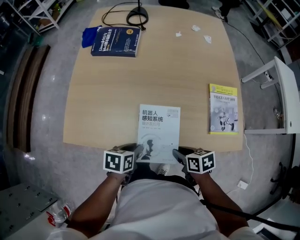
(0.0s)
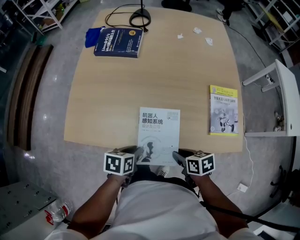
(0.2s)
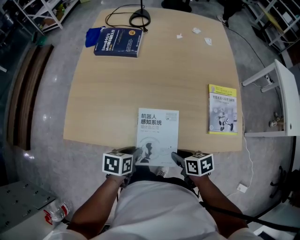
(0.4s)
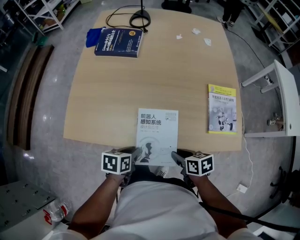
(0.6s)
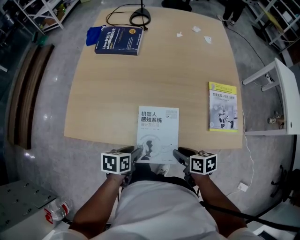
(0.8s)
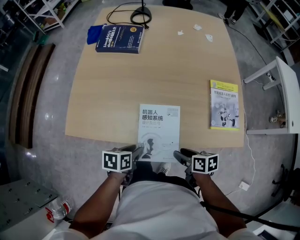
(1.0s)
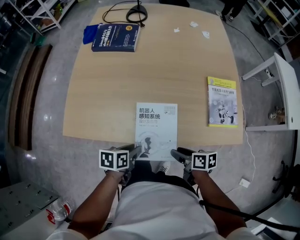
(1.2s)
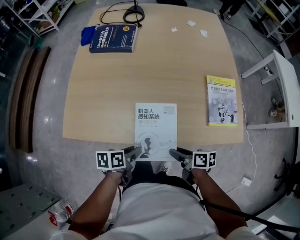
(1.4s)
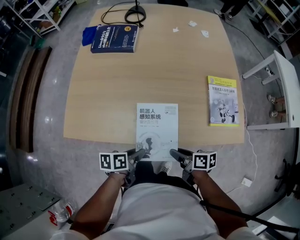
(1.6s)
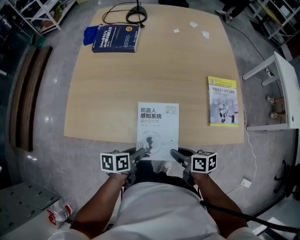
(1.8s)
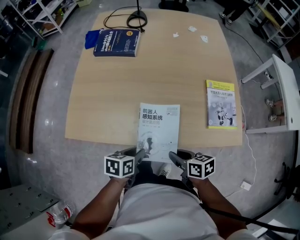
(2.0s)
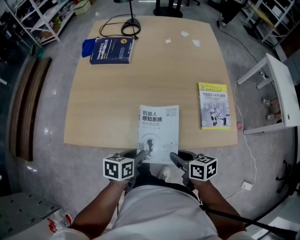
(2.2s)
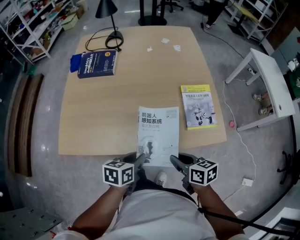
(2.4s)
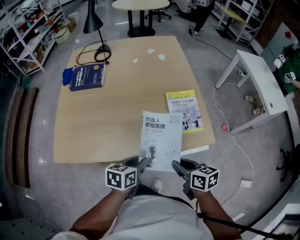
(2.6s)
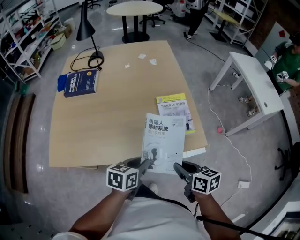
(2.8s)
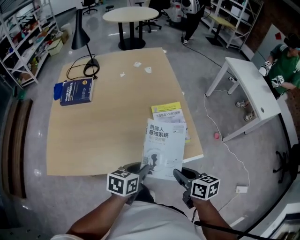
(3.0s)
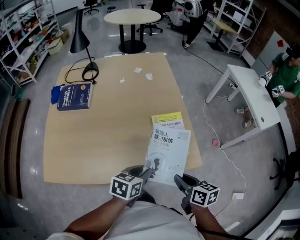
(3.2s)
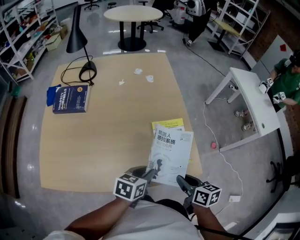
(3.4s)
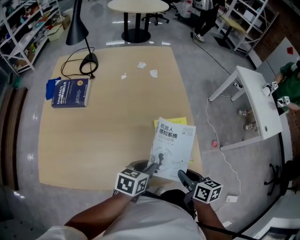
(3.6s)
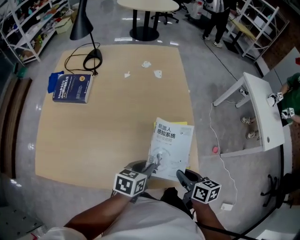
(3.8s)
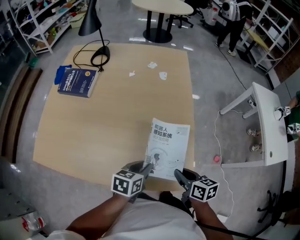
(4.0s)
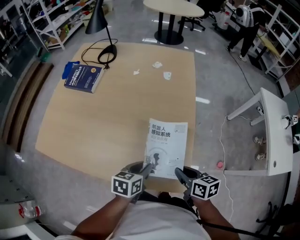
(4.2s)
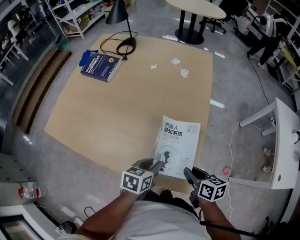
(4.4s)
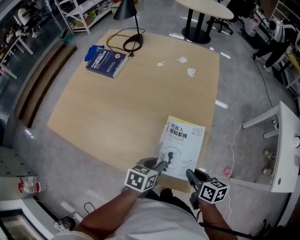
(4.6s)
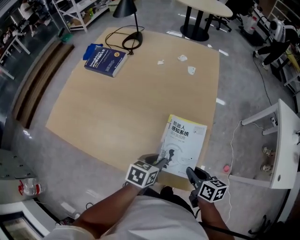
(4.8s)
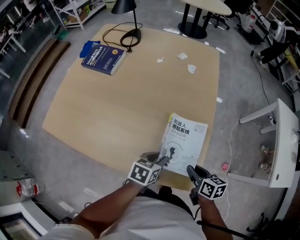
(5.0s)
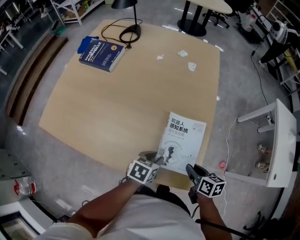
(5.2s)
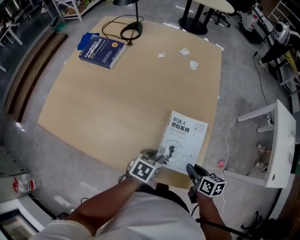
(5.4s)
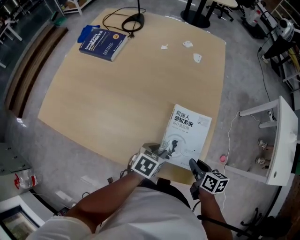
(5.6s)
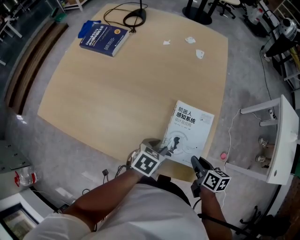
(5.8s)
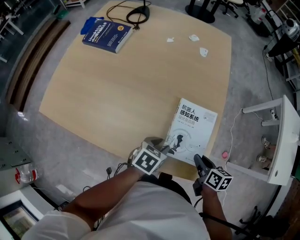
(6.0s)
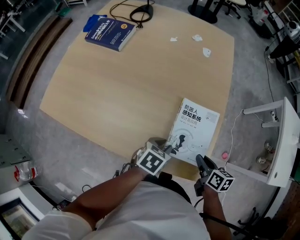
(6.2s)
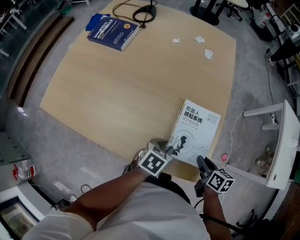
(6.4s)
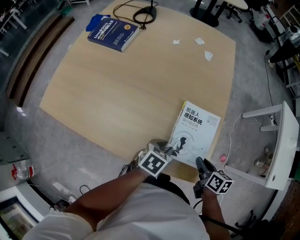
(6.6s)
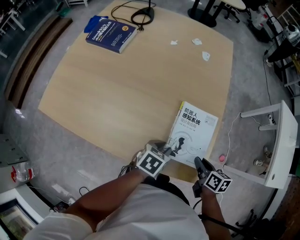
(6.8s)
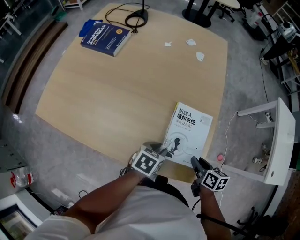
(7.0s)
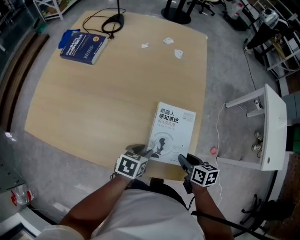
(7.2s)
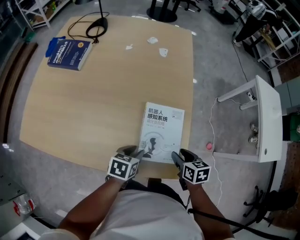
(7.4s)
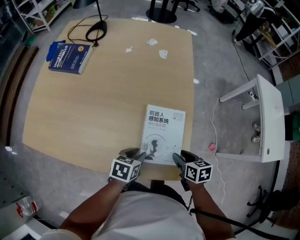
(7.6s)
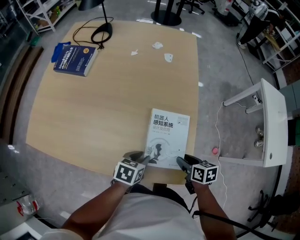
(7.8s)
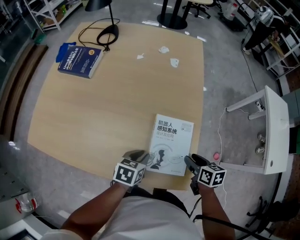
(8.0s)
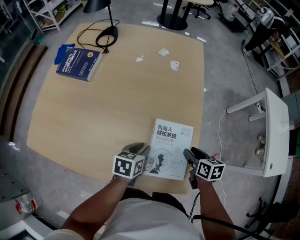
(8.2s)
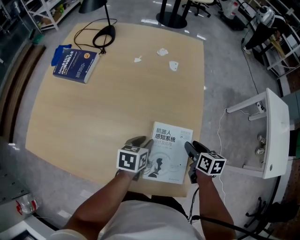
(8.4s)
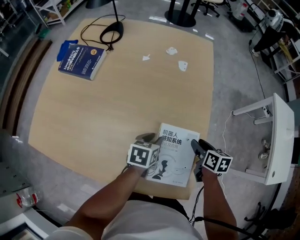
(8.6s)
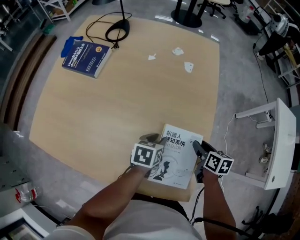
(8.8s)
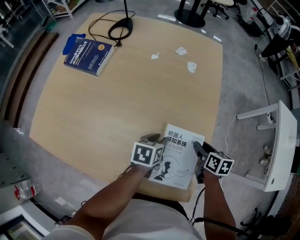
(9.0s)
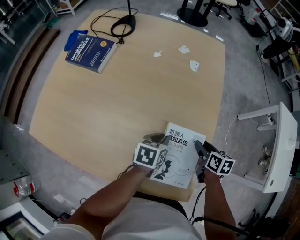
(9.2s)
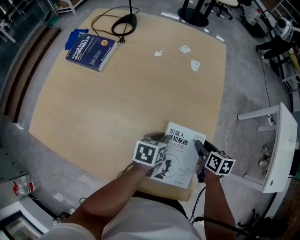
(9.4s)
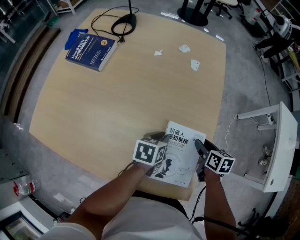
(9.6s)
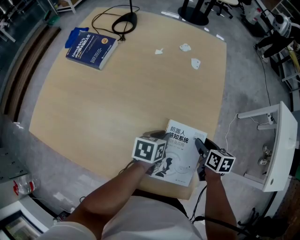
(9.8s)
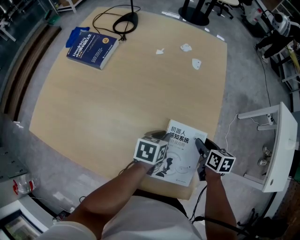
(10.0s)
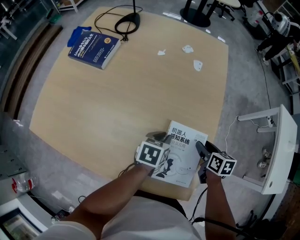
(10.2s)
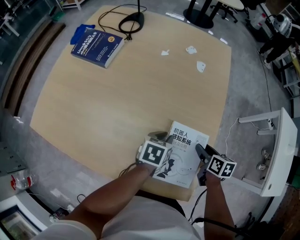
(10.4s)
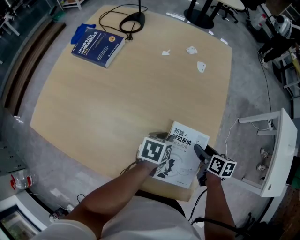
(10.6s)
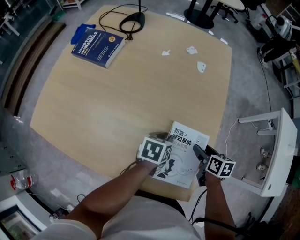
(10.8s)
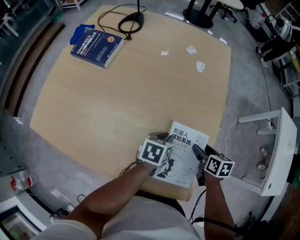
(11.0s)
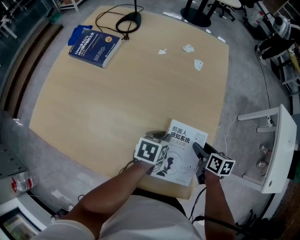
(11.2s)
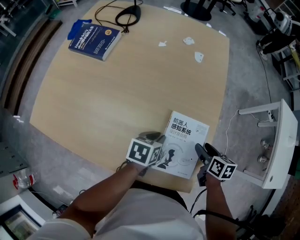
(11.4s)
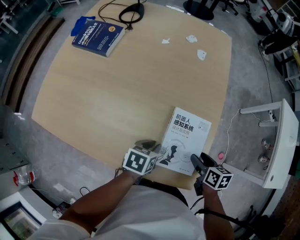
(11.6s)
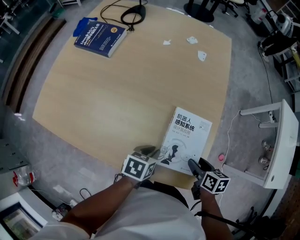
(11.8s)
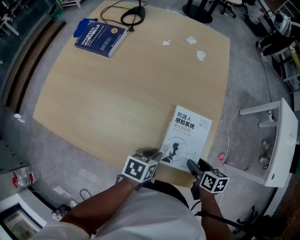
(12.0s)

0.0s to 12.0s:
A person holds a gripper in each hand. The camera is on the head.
0.0s to 1.6s: The left gripper heads backward, covering some 5 cm, and turns by roughly 20 degrees. Meanwhile the right gripper changes its angle by approximately 30 degrees.
1.6s to 3.0s: The grippers both shift to the right and upward by about 25 cm. The left gripper changes its angle by approximately 40 degrees. Meanwhile the right gripper swivels approximately 30 degrees.
3.0s to 4.4s: The right gripper shifts by some 20 cm, and changes its angle by approximately 20 degrees. Meanwhile the left gripper changes place by roughly 15 cm, and rotates about 30 degrees.
4.4s to 6.0s: The grippers make only small movements.
6.0s to 7.6s: The right gripper opens its fingers.
7.6s to 9.0s: The grippers both shift forward by some 15 cm.
9.0s to 10.4s: The grippers move only a little.
10.4s to 12.0s: Both grippers move backward, some 15 cm.

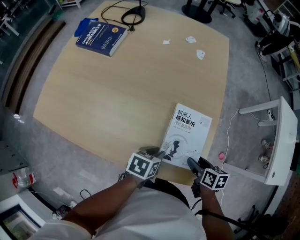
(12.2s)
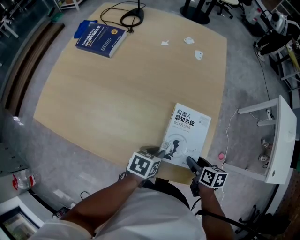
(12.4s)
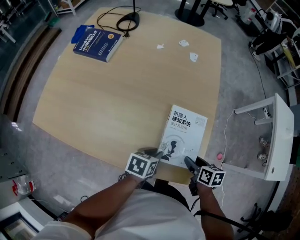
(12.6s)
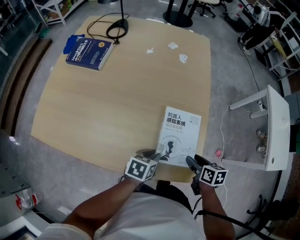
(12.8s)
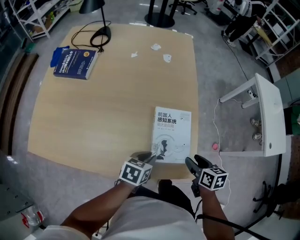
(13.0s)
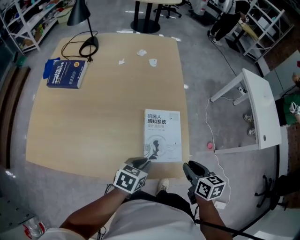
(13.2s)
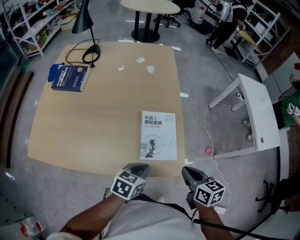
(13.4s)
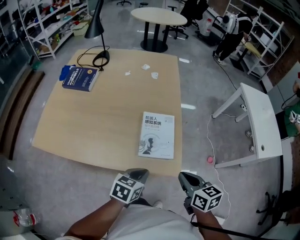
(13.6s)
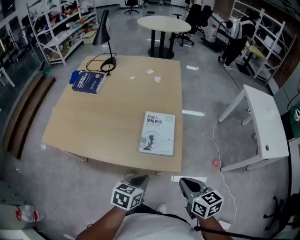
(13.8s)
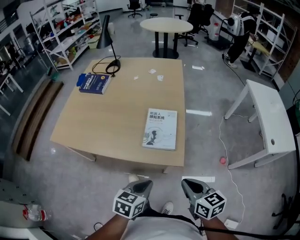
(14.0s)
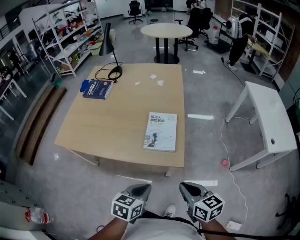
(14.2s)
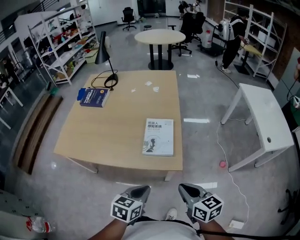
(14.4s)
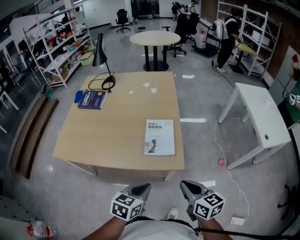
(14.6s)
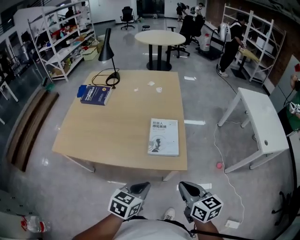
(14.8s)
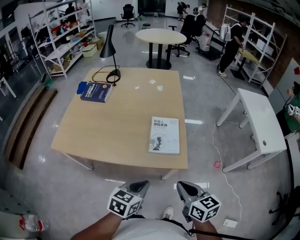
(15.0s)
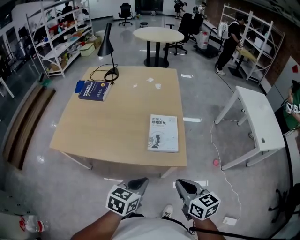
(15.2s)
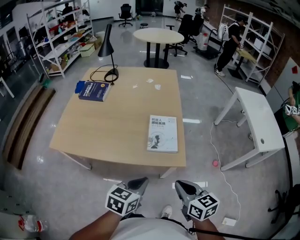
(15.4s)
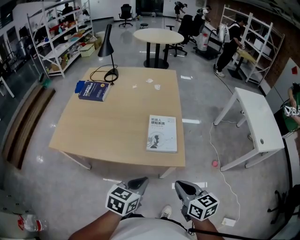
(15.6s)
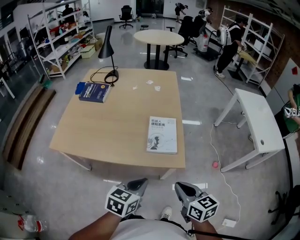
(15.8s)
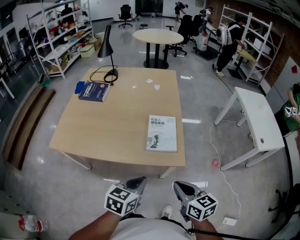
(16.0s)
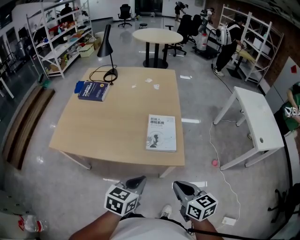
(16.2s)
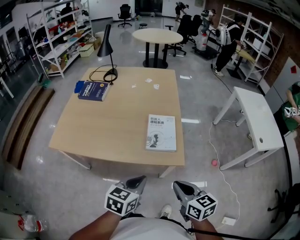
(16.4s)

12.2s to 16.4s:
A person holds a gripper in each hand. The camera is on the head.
12.2s to 13.6s: The right gripper goes about 20 cm upward and backward, swivels approximately 20 degrees, and closes; the left gripper goes about 15 cm backward and upward, turns by some 20 degrees, and closes.
13.6s to 15.0s: The left gripper travels backward and upward by approximately 15 cm. The right gripper heads backward, covering about 10 cm.
15.0s to 16.4s: The grippers move only a little.

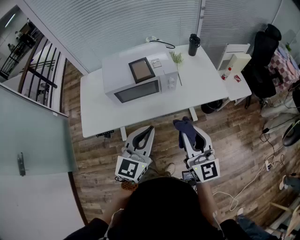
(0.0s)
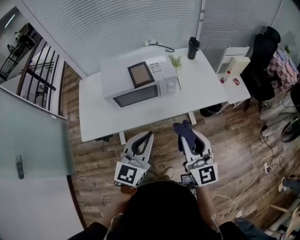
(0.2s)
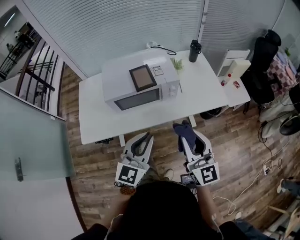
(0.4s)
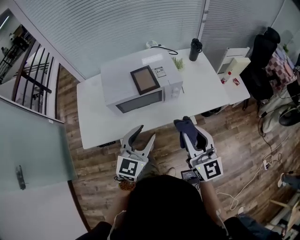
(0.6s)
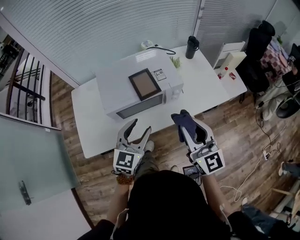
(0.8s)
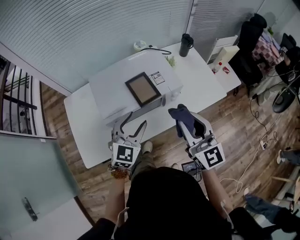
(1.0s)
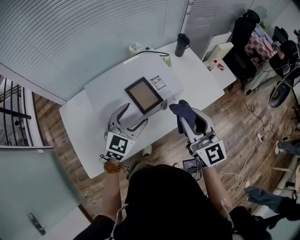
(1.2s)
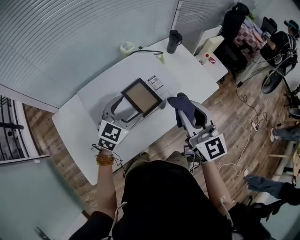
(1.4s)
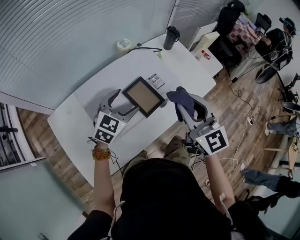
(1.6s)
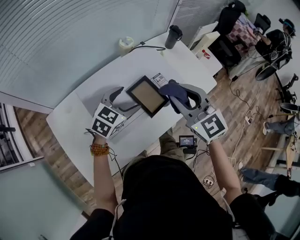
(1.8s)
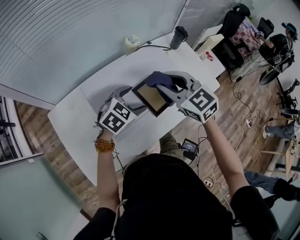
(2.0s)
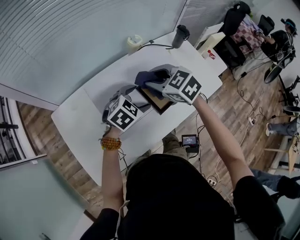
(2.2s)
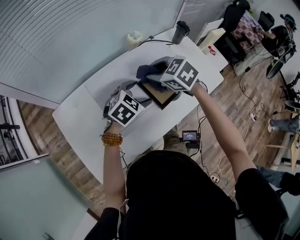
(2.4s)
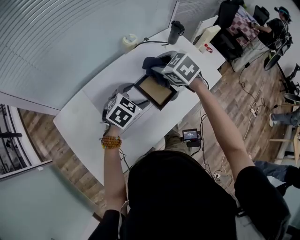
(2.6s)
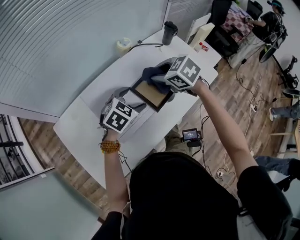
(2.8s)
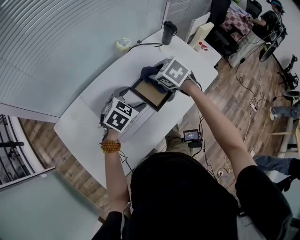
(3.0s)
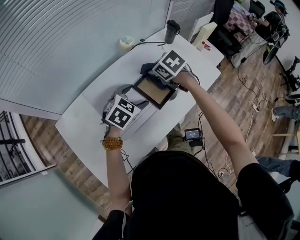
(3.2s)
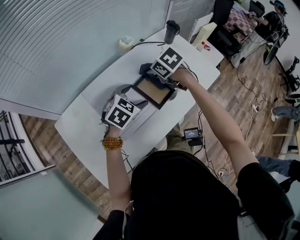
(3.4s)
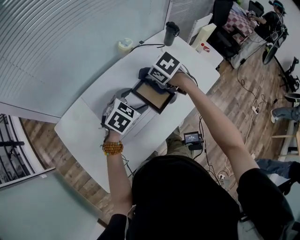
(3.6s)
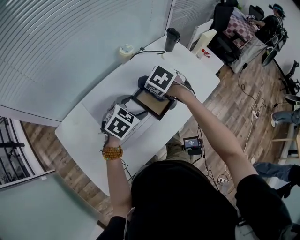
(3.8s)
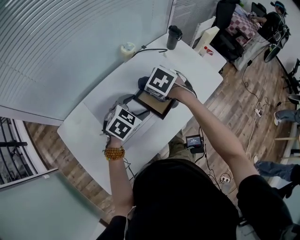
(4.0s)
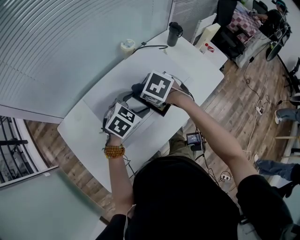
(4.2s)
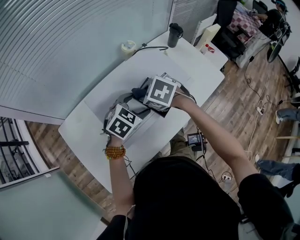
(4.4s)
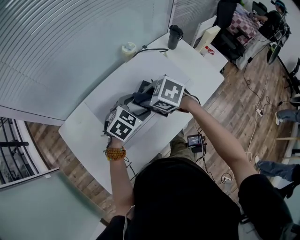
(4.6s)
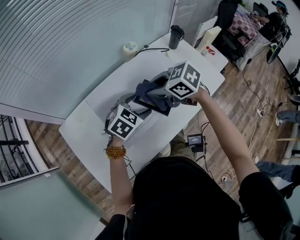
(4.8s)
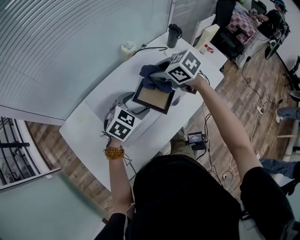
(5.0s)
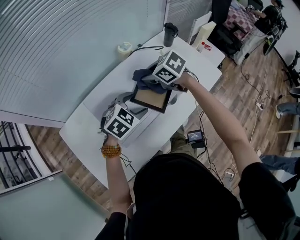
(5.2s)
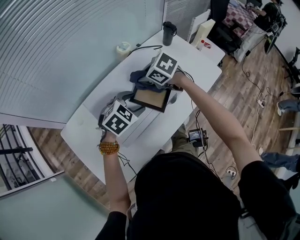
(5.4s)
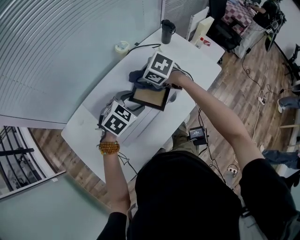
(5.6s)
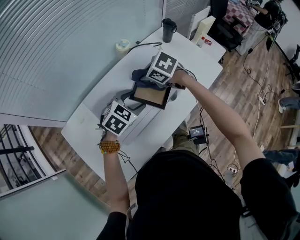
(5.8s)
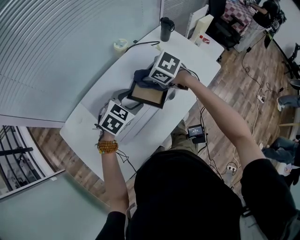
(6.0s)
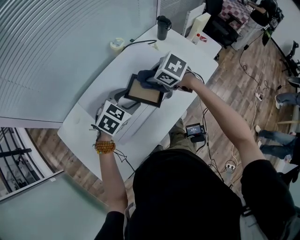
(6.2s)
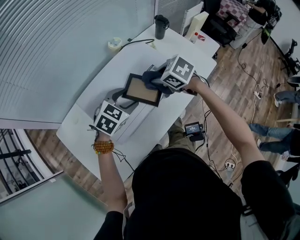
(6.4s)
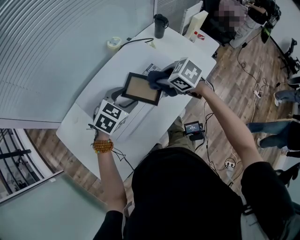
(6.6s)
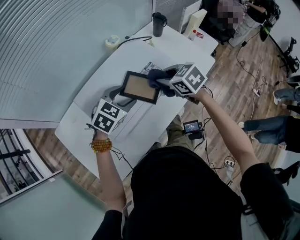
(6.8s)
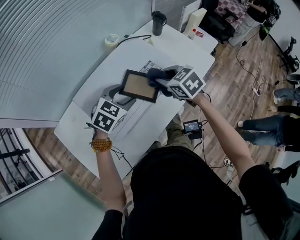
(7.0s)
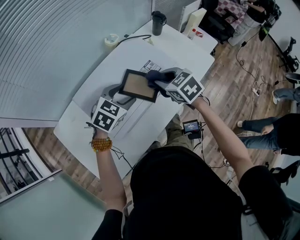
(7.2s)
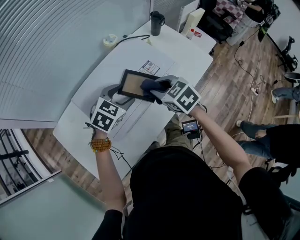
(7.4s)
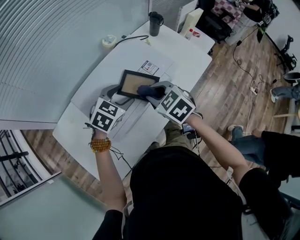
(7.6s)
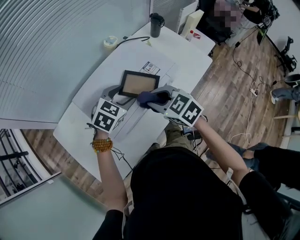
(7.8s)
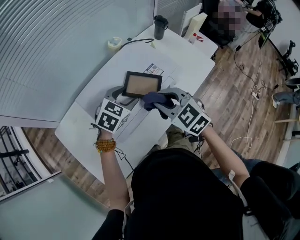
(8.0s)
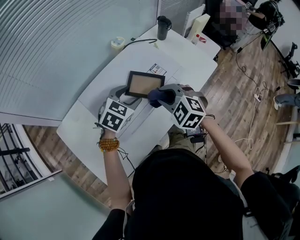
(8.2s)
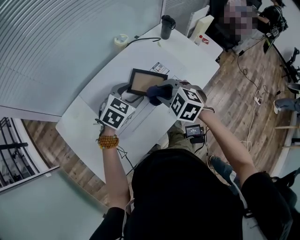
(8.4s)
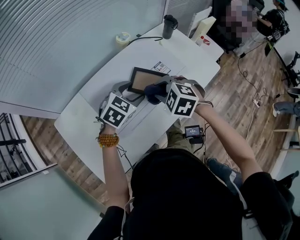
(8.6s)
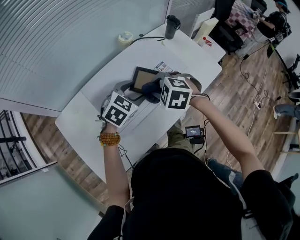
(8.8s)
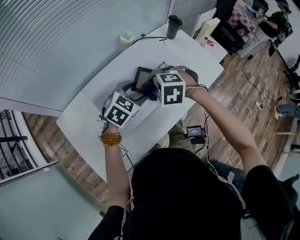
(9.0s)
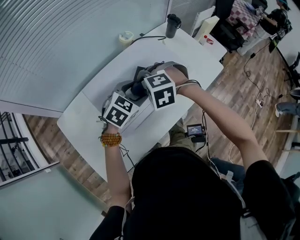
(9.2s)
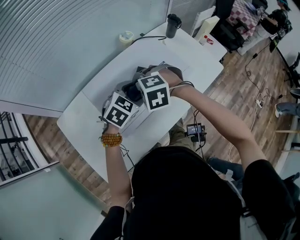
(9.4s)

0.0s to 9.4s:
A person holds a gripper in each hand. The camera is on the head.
0.0s to 1.6s: Both grippers move forward and to the left, roughly 35 cm. The right gripper swivels some 20 degrees, while the left gripper turns by about 40 degrees, and opens up.
1.6s to 3.2s: The right gripper is displaced forward, downward and to the left by about 25 cm, and points its fingers some 50 degrees further downward.
3.2s to 4.8s: The right gripper moves approximately 10 cm, and swivels roughly 30 degrees.
4.8s to 6.2s: The right gripper shifts by approximately 10 cm.
6.2s to 7.8s: The right gripper moves backward, roughly 10 cm.
7.8s to 9.4s: The right gripper is displaced to the left by roughly 10 cm, and rolls counterclockwise, seen from behind, by about 50 degrees.
